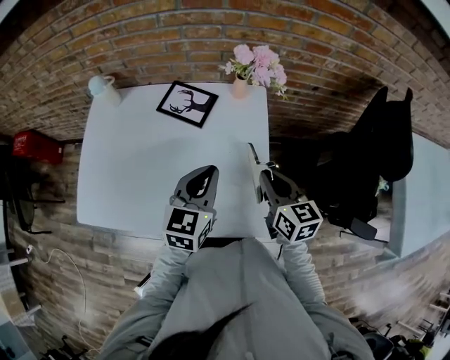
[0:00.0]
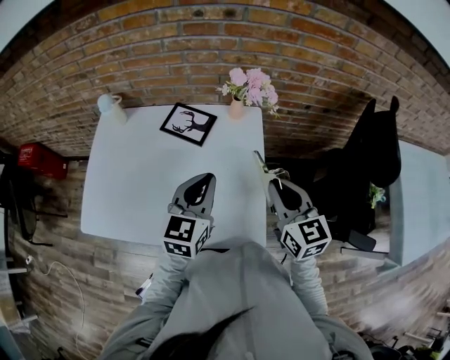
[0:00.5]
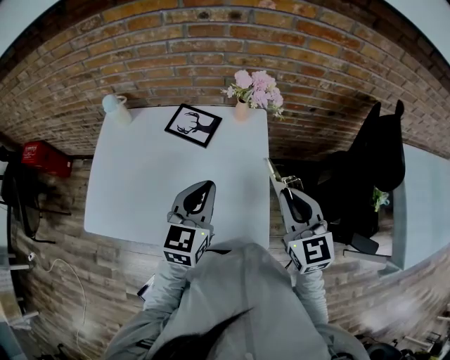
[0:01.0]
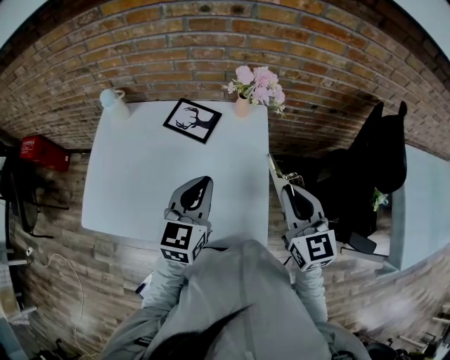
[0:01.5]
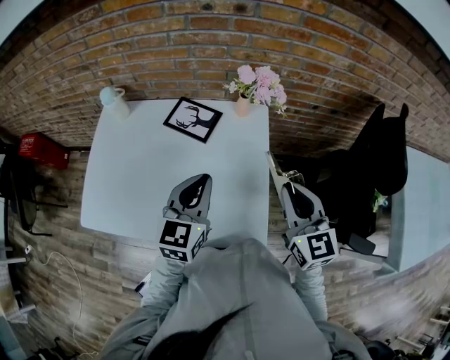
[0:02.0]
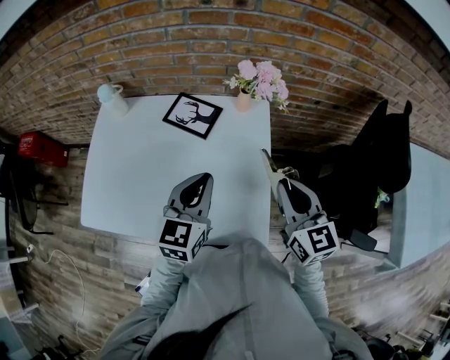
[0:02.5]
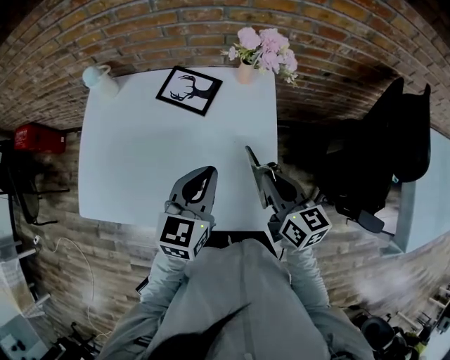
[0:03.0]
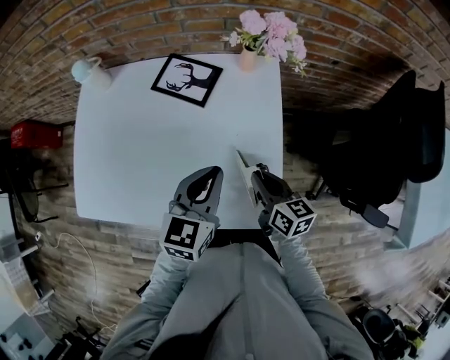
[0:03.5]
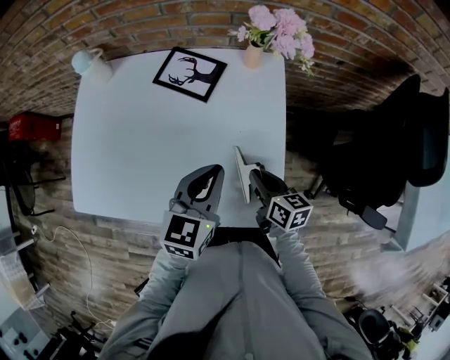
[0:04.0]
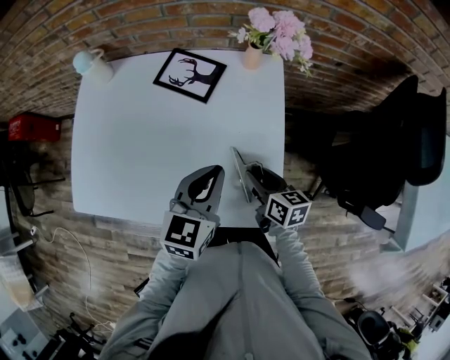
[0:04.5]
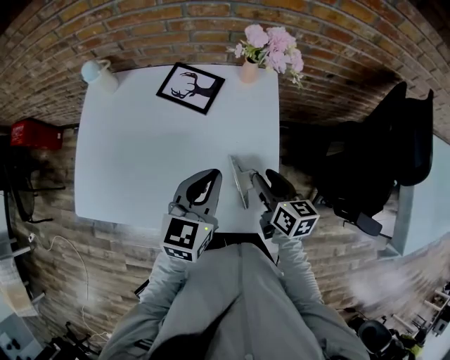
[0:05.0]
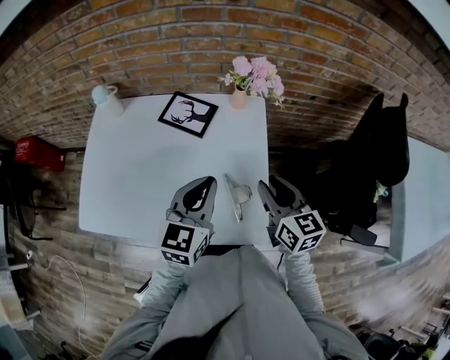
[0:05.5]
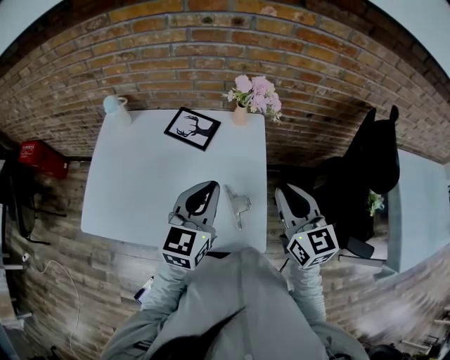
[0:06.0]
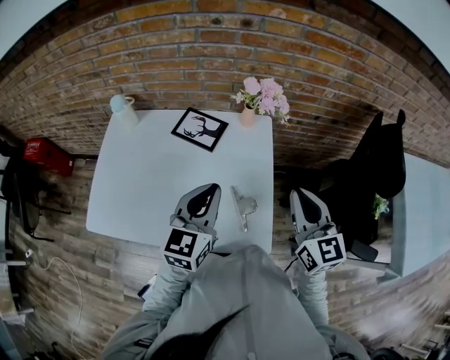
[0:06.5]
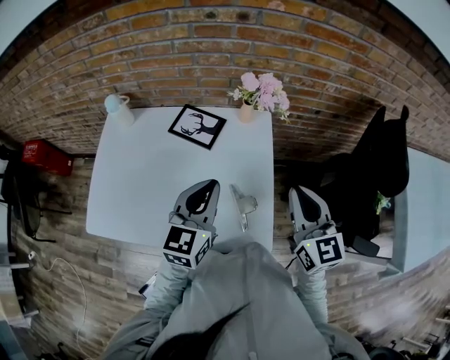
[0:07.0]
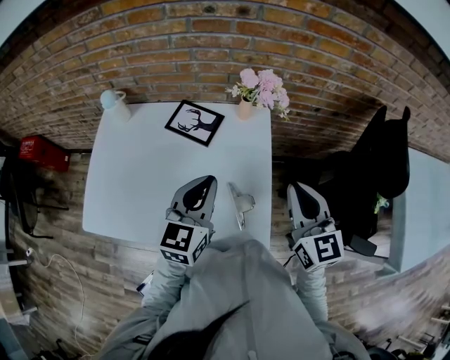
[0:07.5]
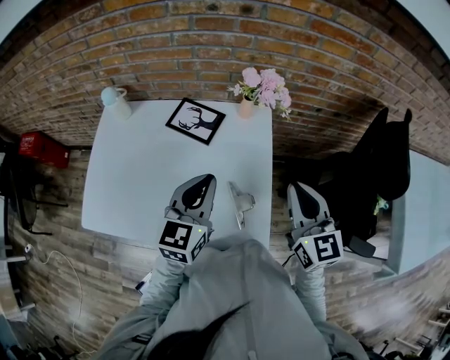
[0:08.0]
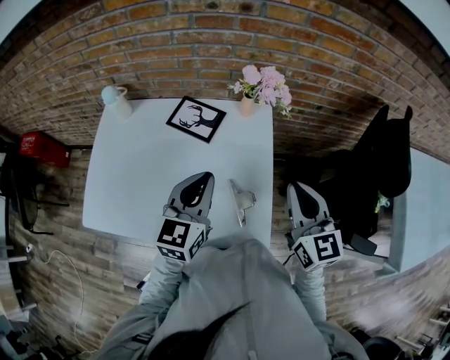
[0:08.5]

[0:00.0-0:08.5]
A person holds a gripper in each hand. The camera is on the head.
0:00.0 to 0:02.0: The right gripper heads upward, covering roughly 10 cm, and changes its angle by approximately 20 degrees.
0:02.0 to 0:04.0: The right gripper travels downward by approximately 25 cm, and changes its angle by some 50 degrees, while the left gripper travels downward by approximately 10 cm.
0:04.0 to 0:06.5: The left gripper shifts about 10 cm upward. The right gripper shifts approximately 25 cm upward, rotates roughly 40 degrees, and opens and closes again.
0:06.5 to 0:08.5: There are only small adjustments of the grippers.

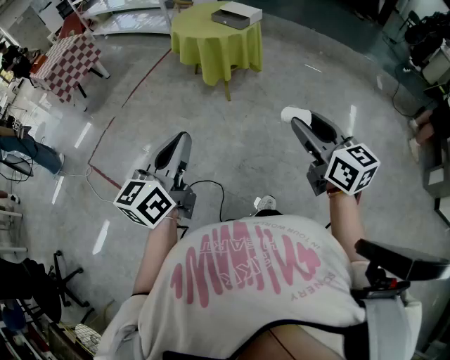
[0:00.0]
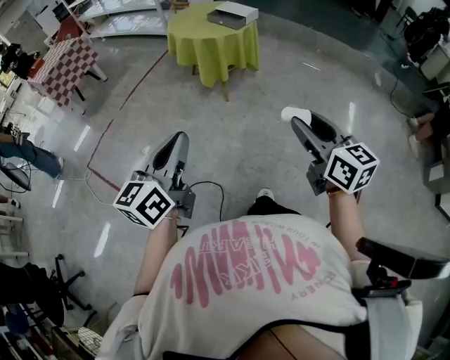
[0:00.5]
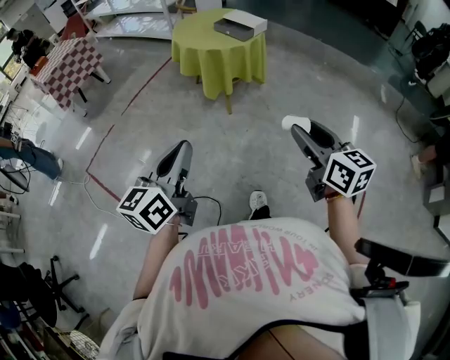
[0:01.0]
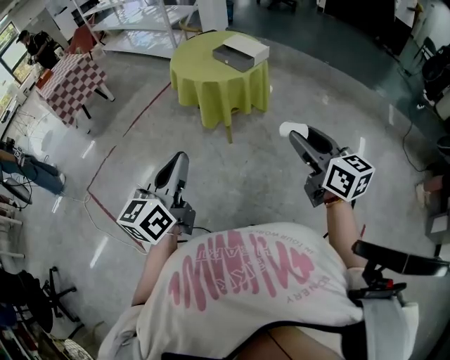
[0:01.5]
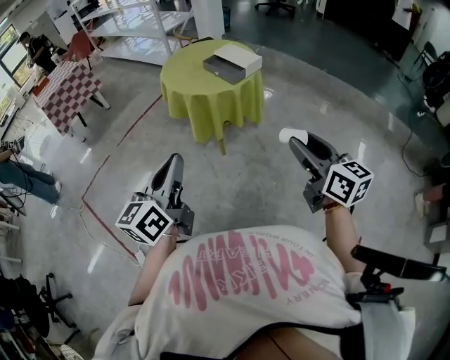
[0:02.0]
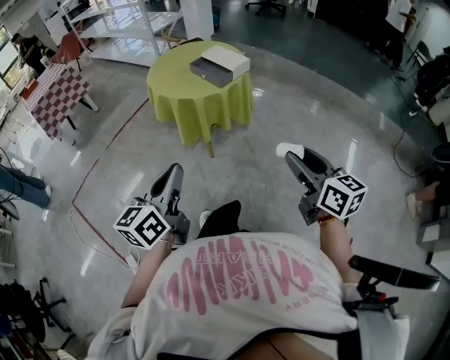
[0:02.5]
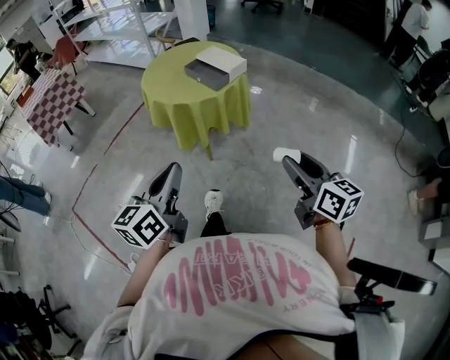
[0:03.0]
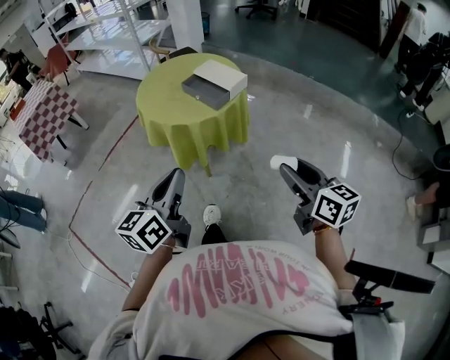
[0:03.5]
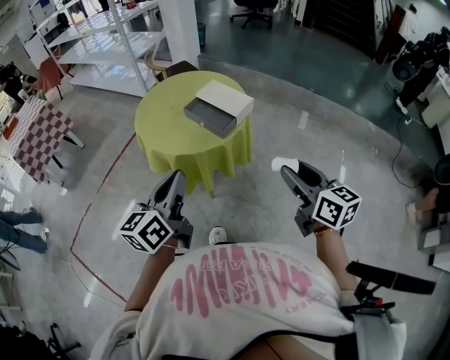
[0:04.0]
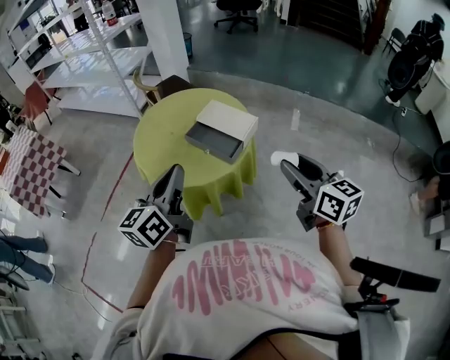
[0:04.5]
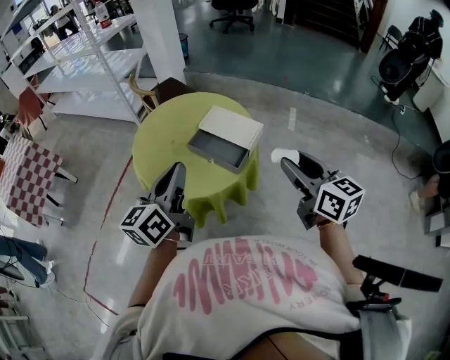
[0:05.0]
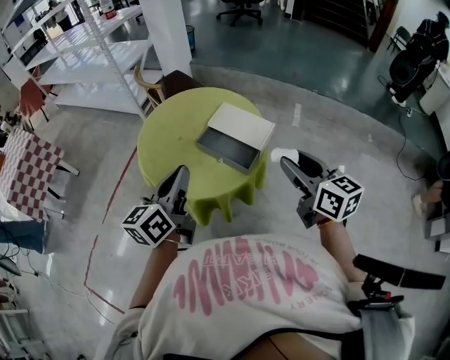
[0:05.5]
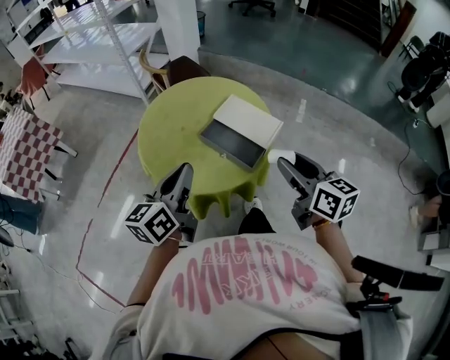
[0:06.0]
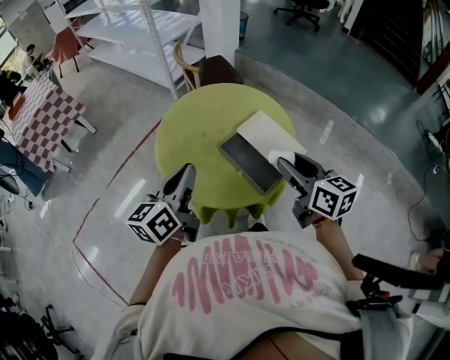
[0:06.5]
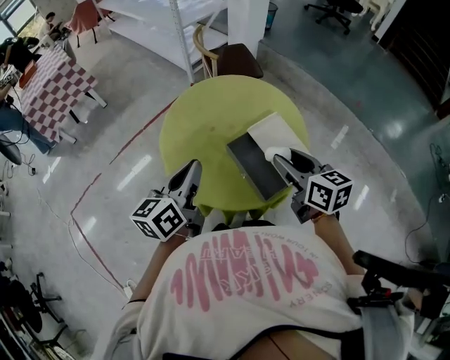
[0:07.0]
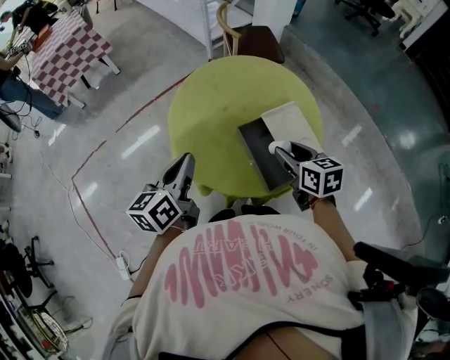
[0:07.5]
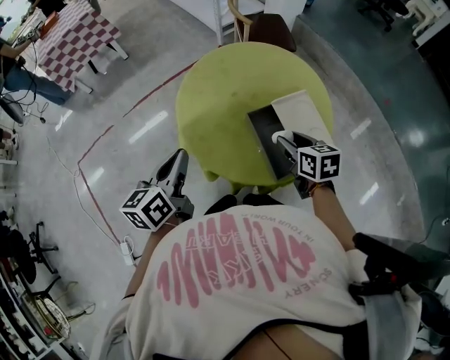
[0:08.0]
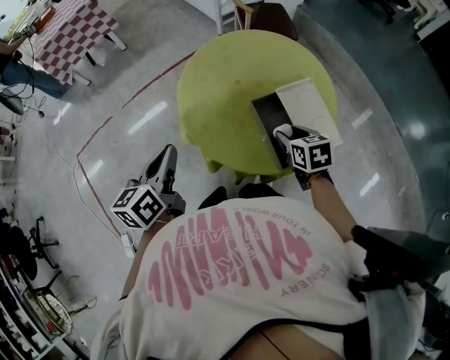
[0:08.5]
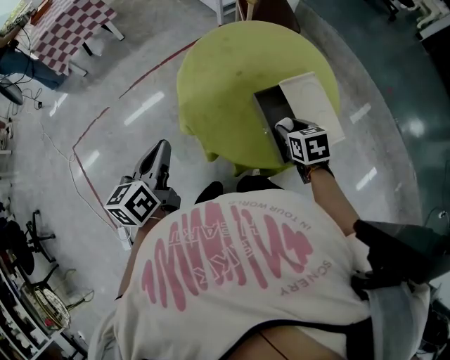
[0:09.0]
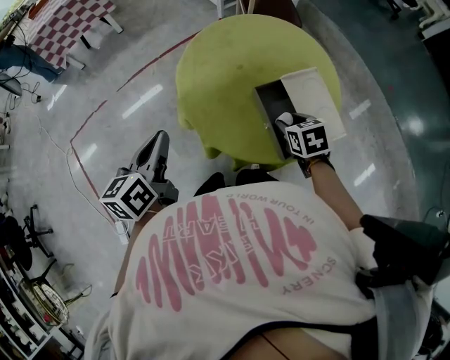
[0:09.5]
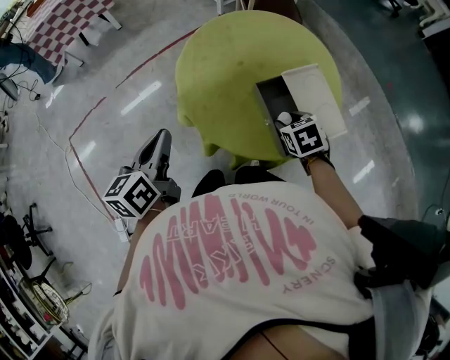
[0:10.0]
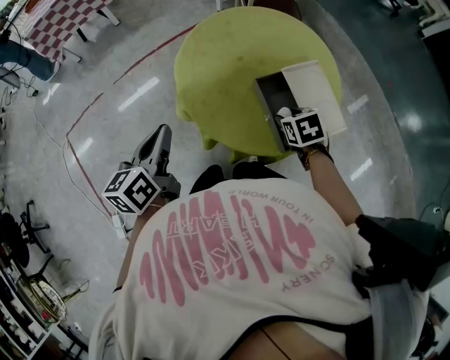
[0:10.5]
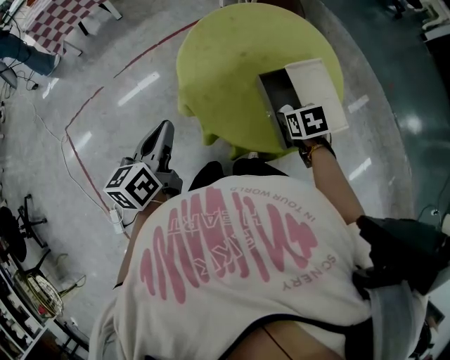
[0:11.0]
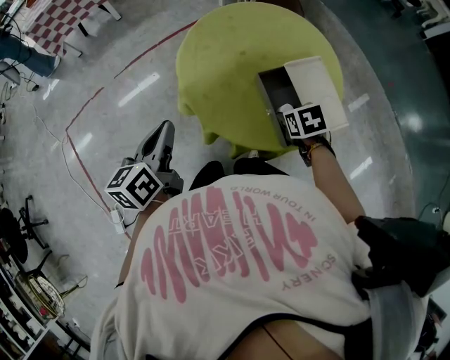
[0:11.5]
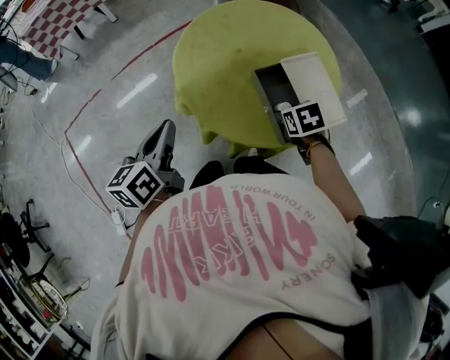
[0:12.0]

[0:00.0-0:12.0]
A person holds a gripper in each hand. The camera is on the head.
0:00.0 to 0:02.0: The two grippers go about 35 cm forward and to the right.
0:02.0 to 0:04.0: The two grippers go roughly 30 cm forward.
0:04.0 to 0:06.0: The right gripper shifts approximately 30 cm forward and to the left; the left gripper is displaced forward by about 25 cm.
0:06.0 to 0:08.0: The right gripper changes place by roughly 25 cm, and changes its angle by about 40 degrees; the left gripper shifts by roughly 10 cm, and rotates about 40 degrees.
0:08.0 to 0:10.0: The right gripper goes about 10 cm downward, and rotates roughly 30 degrees, while the left gripper moves to the left, some 5 cm.
0:10.0 to 0:12.0: The grippers stay close to where they were, moving slightly.

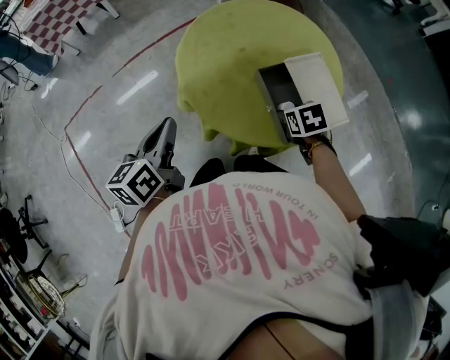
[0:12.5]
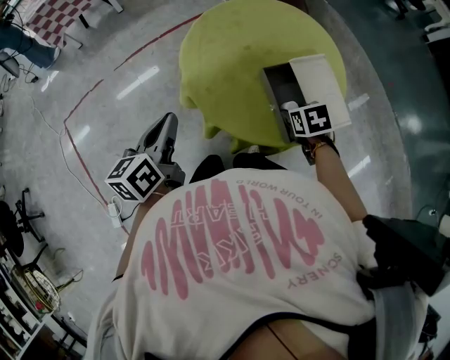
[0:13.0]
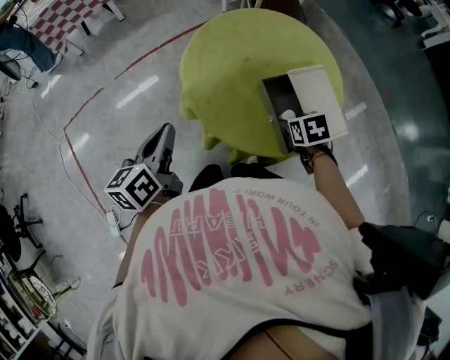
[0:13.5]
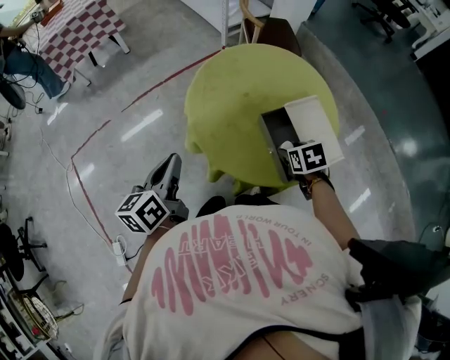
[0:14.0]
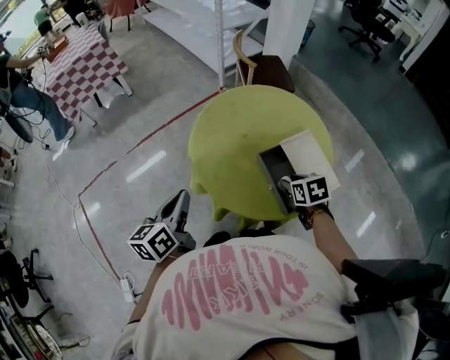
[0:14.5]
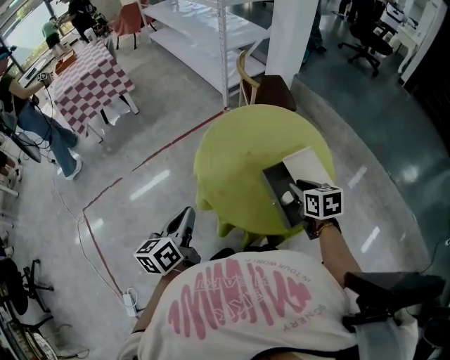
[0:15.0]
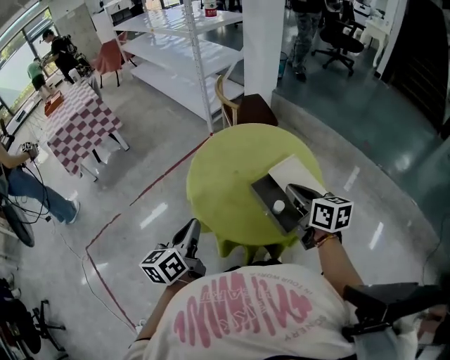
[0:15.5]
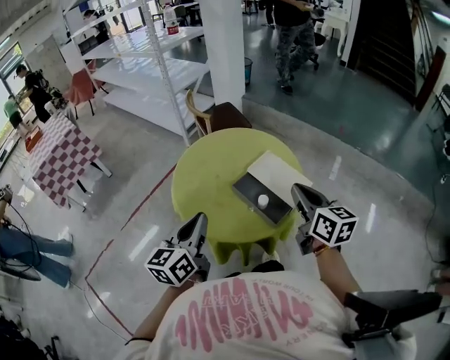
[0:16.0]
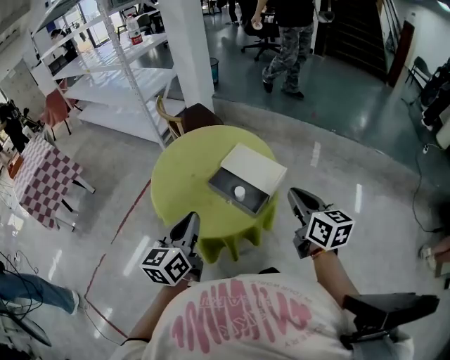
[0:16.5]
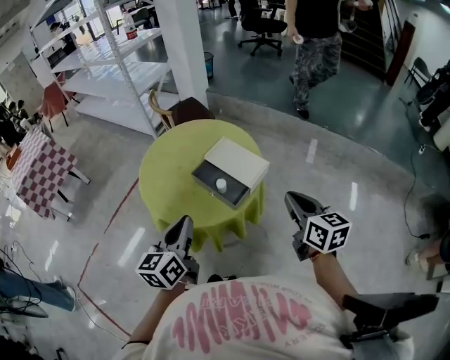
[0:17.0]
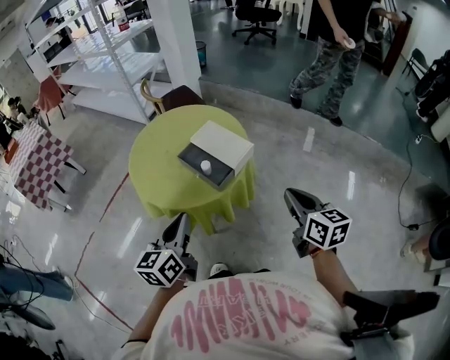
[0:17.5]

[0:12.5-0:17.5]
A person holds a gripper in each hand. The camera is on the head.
0:12.5 to 0:15.0: The right gripper shifts roughly 10 cm upward, and turns by about 30 degrees.
0:15.0 to 0:17.5: The left gripper moves approximately 25 cm, and turns by roughly 30 degrees, while the right gripper shifts by roughly 40 cm, changes its angle by about 40 degrees, and closes.

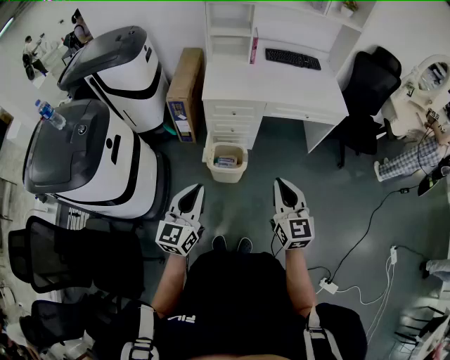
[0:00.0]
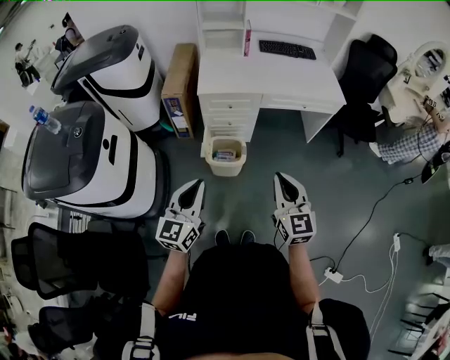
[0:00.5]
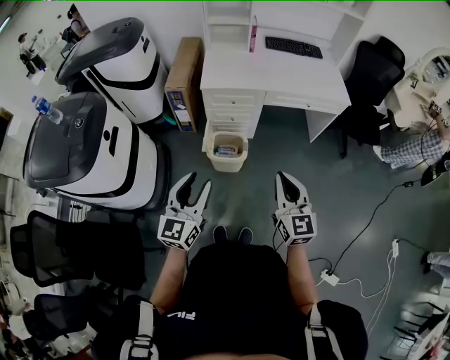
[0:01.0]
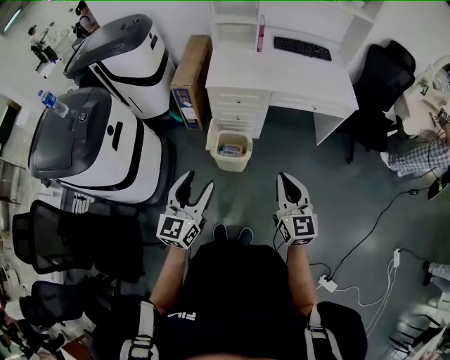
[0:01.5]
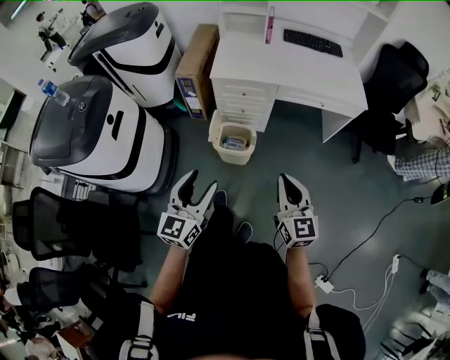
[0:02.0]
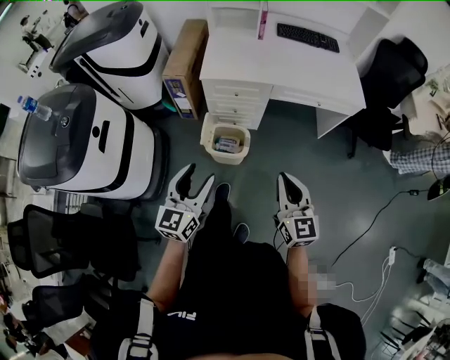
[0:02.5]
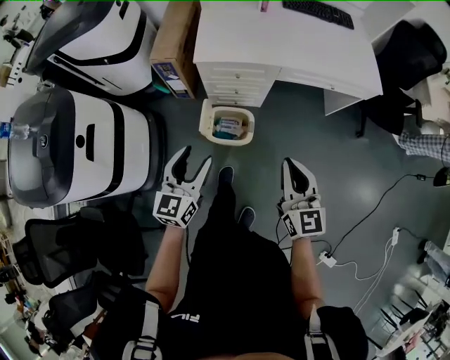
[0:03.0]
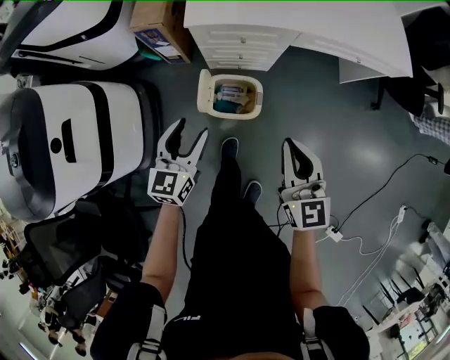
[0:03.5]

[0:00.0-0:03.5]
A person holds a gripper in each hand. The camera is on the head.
0:00.0 to 0:02.0: Both grippers travel together to the right, about 5 cm. The left gripper opens its fingers.
0:02.0 to 0:03.5: Both grippers travel together forward and downward, about 35 cm.
